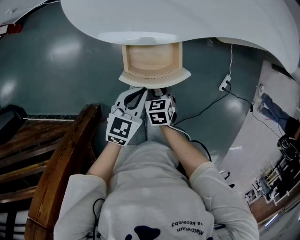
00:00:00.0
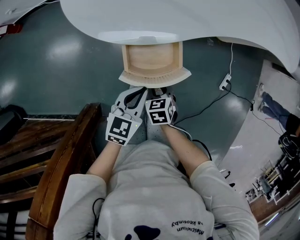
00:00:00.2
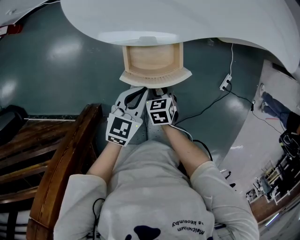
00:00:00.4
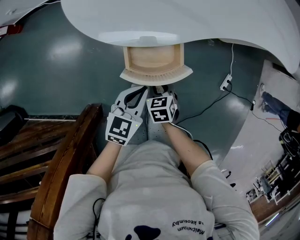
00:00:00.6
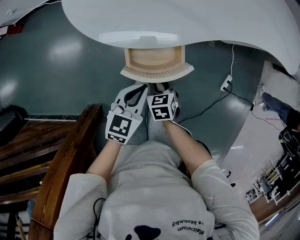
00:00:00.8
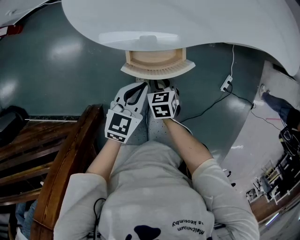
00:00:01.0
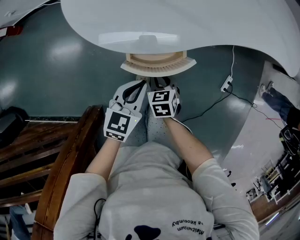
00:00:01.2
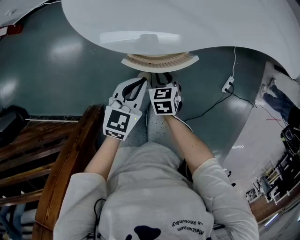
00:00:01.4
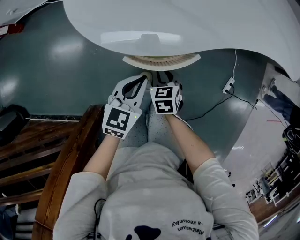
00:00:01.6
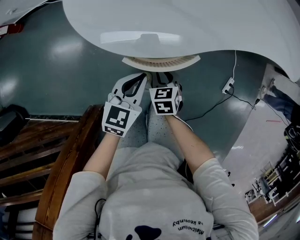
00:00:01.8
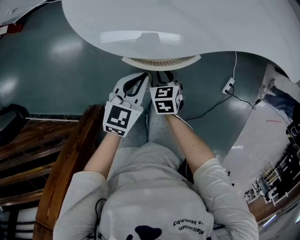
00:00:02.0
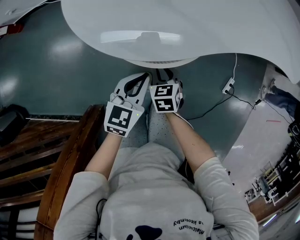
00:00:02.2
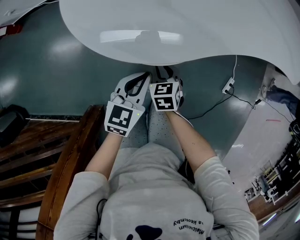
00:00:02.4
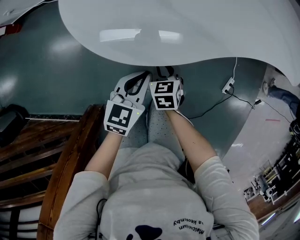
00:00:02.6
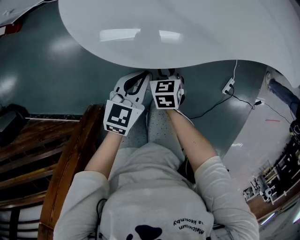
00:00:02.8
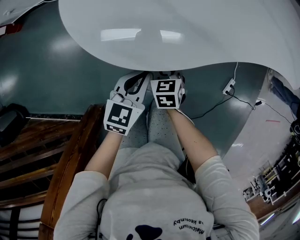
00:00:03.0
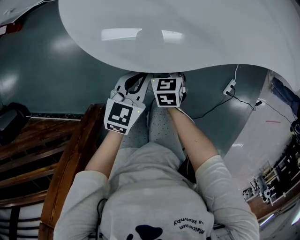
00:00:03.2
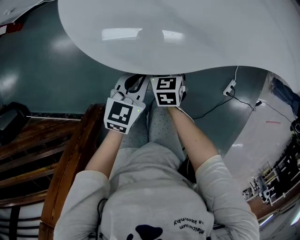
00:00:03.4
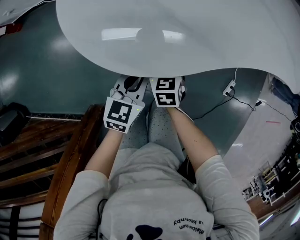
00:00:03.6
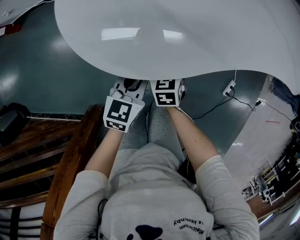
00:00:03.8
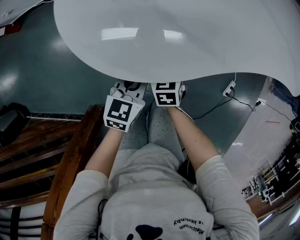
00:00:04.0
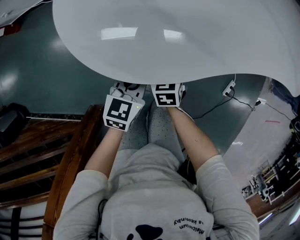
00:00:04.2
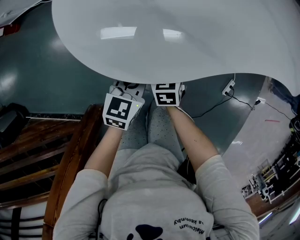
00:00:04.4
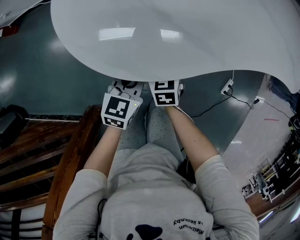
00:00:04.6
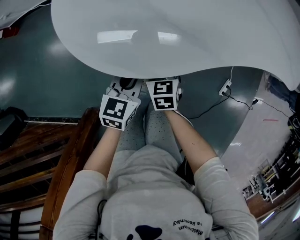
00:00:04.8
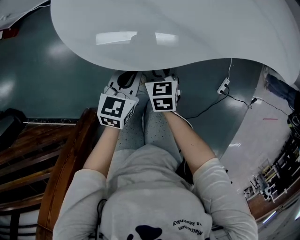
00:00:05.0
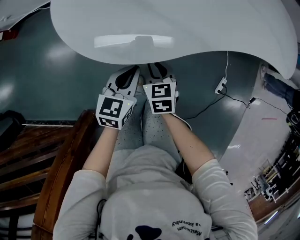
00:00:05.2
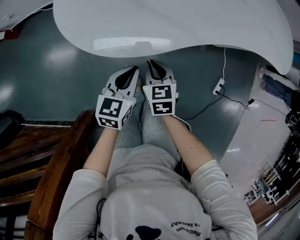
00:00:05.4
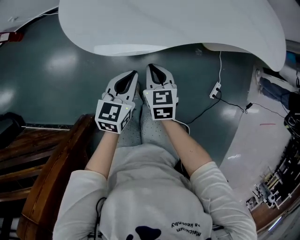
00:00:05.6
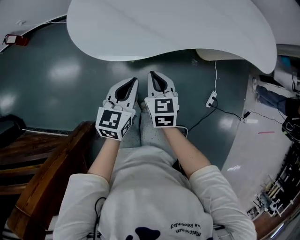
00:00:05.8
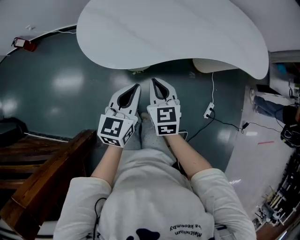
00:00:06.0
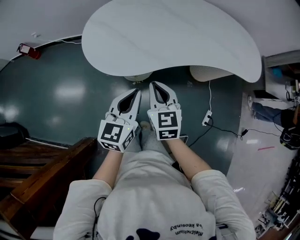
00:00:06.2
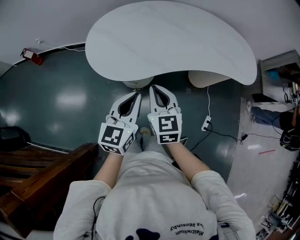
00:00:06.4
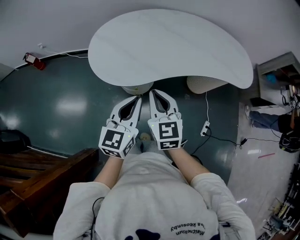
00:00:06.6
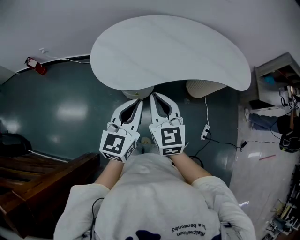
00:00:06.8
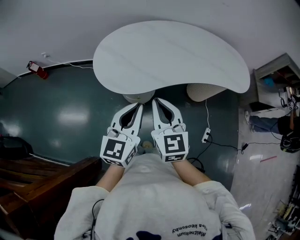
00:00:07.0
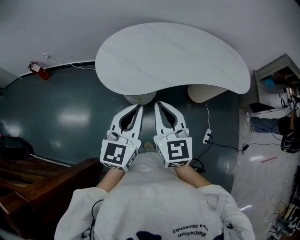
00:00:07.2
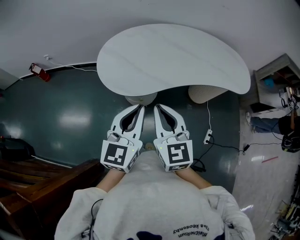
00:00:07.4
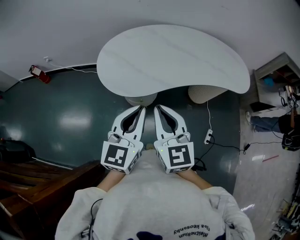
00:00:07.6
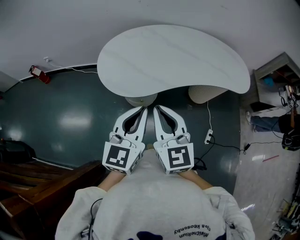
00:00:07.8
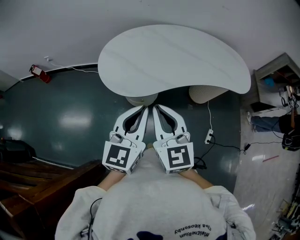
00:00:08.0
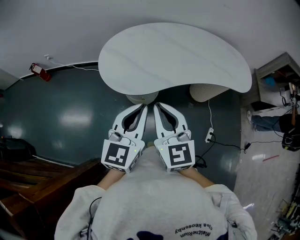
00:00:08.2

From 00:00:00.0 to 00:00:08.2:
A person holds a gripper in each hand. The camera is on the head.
From 00:00:00.0 to 00:00:01.6: Both grippers travel together forward, roughly 10 cm.
From 00:00:01.6 to 00:00:03.2: Both grippers move forward, some 5 cm.
From 00:00:03.2 to 00:00:05.0: There are only small adjustments of the grippers.
From 00:00:05.0 to 00:00:06.6: The grippers both shift upward by about 35 cm. The left gripper rotates approximately 30 degrees. The right gripper points its fingers approximately 30 degrees further upward, and closes its fingers.
From 00:00:06.6 to 00:00:08.2: The right gripper is displaced upward and backward by approximately 10 cm, while the left gripper moves upward, some 10 cm.

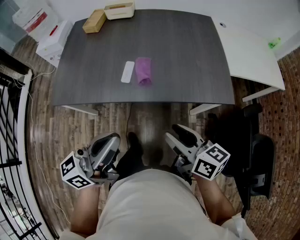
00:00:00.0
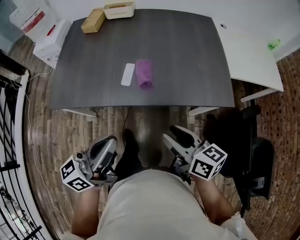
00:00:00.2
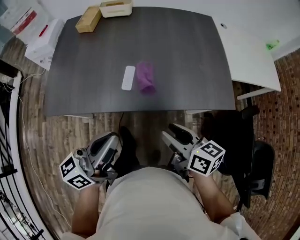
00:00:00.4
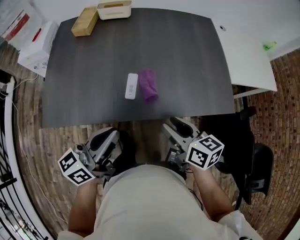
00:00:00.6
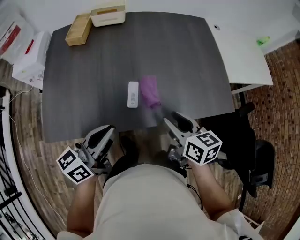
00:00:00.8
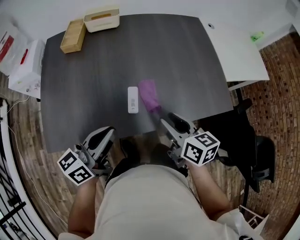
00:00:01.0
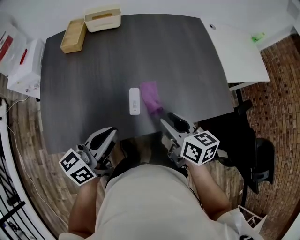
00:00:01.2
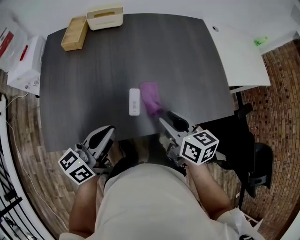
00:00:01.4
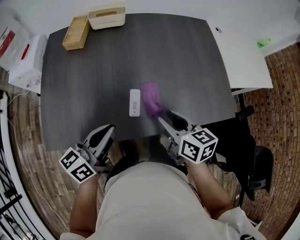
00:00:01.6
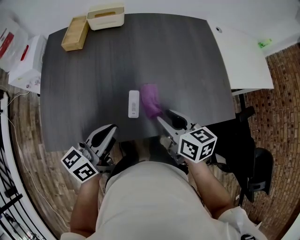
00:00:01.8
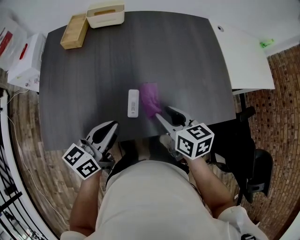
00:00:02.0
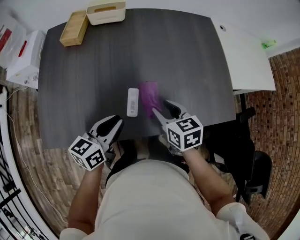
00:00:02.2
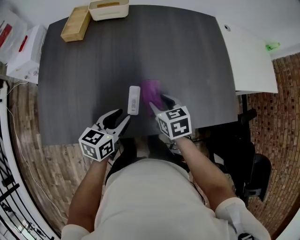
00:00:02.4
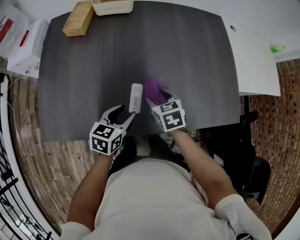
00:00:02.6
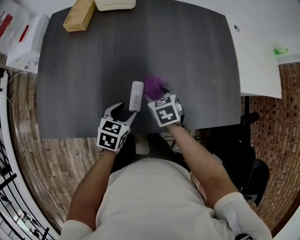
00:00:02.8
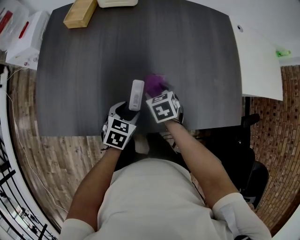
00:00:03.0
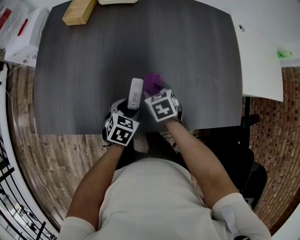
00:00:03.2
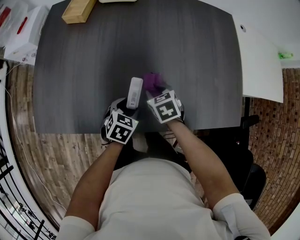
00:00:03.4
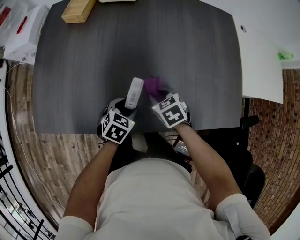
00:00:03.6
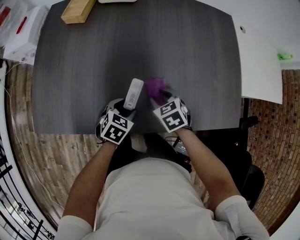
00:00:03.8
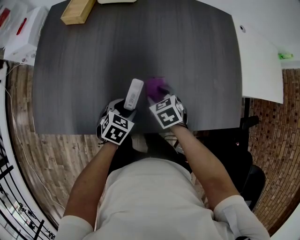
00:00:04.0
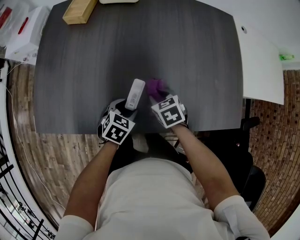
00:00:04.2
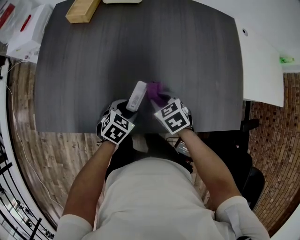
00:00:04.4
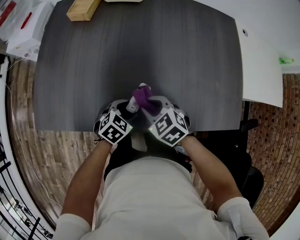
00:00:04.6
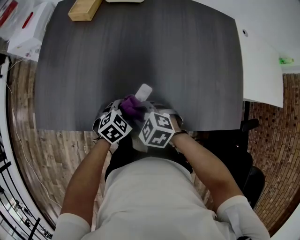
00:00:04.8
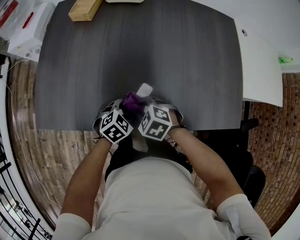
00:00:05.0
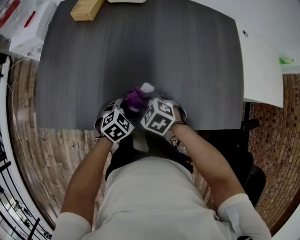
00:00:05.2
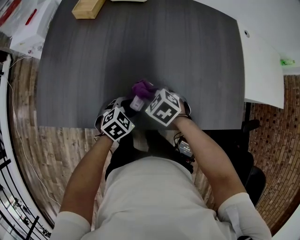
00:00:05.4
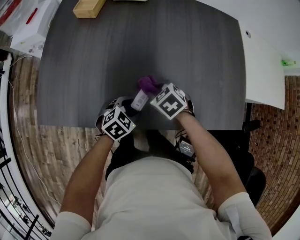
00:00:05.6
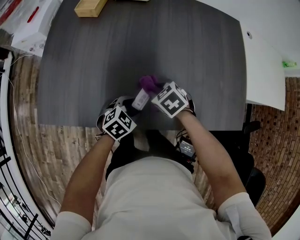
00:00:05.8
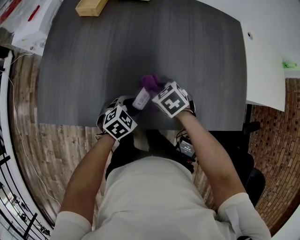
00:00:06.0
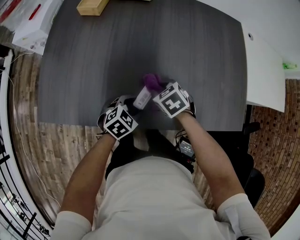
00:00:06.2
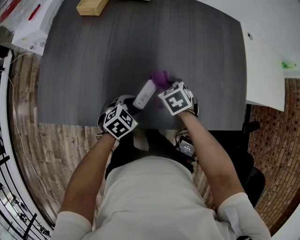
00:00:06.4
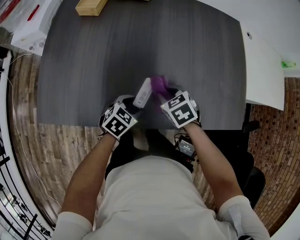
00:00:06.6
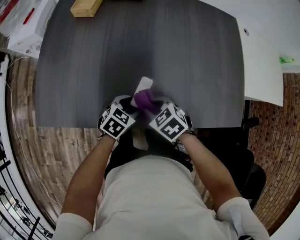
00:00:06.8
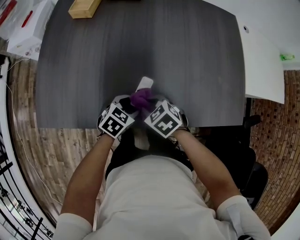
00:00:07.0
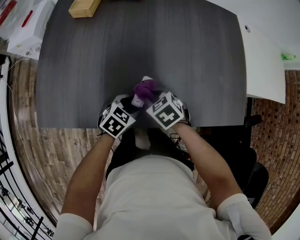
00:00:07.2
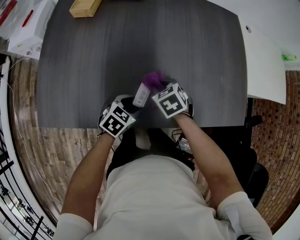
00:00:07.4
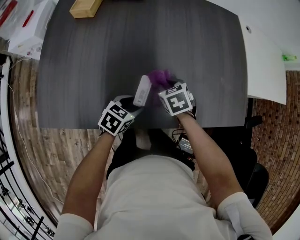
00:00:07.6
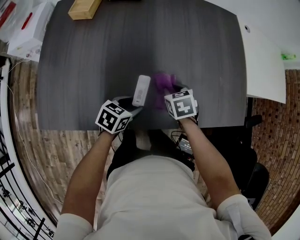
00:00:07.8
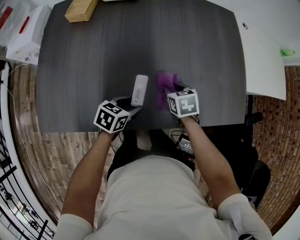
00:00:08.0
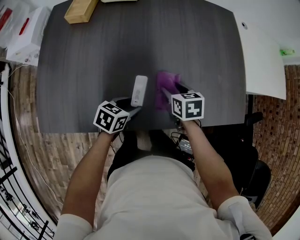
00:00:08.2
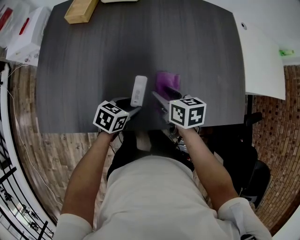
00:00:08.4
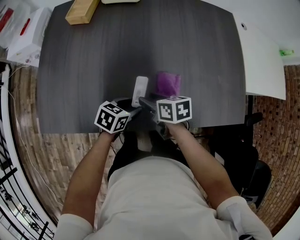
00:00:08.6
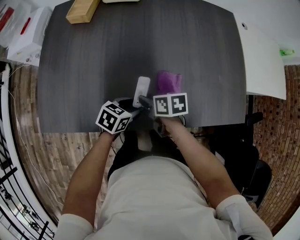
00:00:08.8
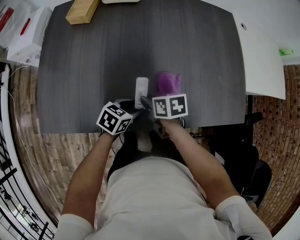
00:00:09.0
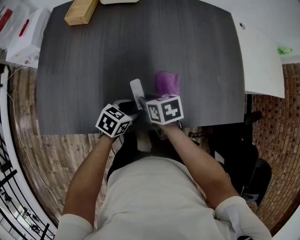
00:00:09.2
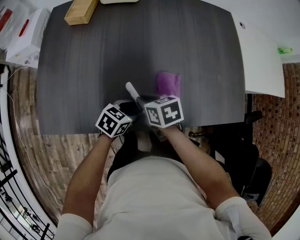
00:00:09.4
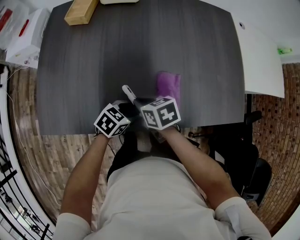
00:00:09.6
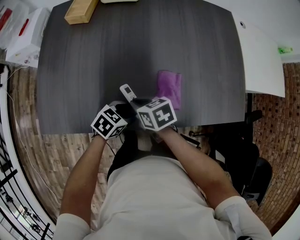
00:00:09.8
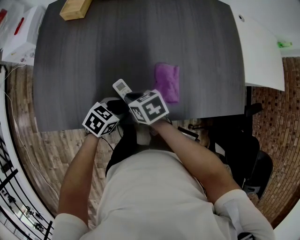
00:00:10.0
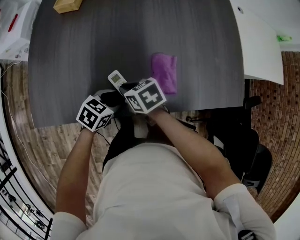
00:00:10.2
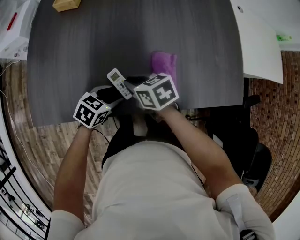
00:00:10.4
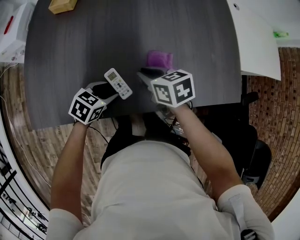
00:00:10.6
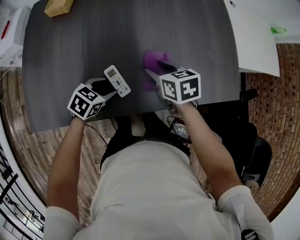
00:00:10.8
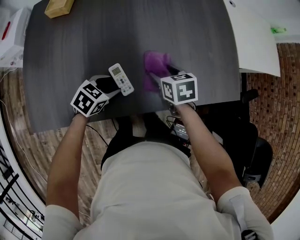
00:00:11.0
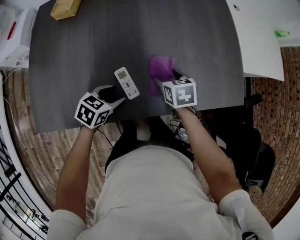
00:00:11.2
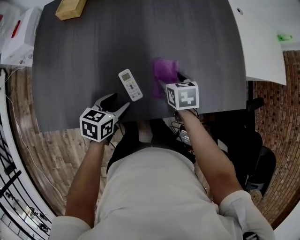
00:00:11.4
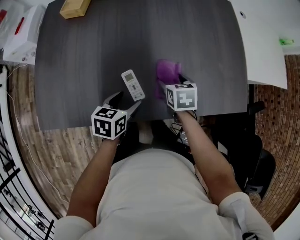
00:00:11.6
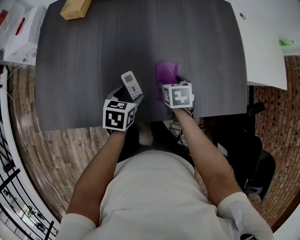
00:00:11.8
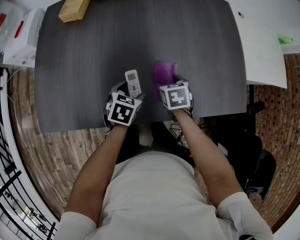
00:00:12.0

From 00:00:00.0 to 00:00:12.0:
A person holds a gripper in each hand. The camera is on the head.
From 00:00:00.0 to 00:00:01.6: The left gripper heads forward, to the left and downward, covering about 25 cm; the right gripper heads forward and to the left, covering approximately 25 cm, and changes its angle by about 20 degrees.
From 00:00:01.6 to 00:00:03.0: The left gripper is displaced downward by approximately 20 cm, points its fingers roughly 50 degrees further downward, and opens; the right gripper is displaced downward and forward by approximately 20 cm, and turns by approximately 40 degrees.
From 00:00:03.0 to 00:00:04.4: The right gripper closes up.
From 00:00:06.0 to 00:00:07.6: The right gripper reaches some 10 cm backward, then returns, and changes its angle by about 20 degrees.
From 00:00:07.6 to 00:00:09.0: The right gripper moves backward, roughly 5 cm, and rotates approximately 40 degrees.
From 00:00:09.0 to 00:00:10.4: The left gripper moves some 5 cm, while the right gripper moves roughly 5 cm.
From 00:00:10.4 to 00:00:12.0: The left gripper changes place by approximately 10 cm. Meanwhile the right gripper ends up roughly 15 cm from where it was, rotates roughly 30 degrees, and opens up.

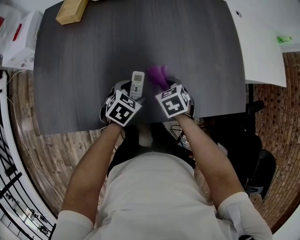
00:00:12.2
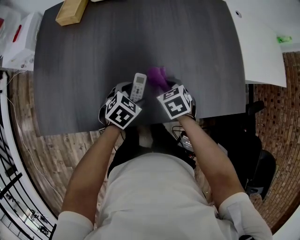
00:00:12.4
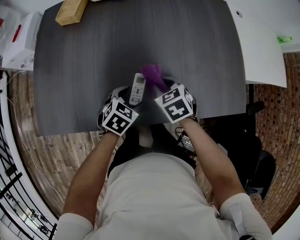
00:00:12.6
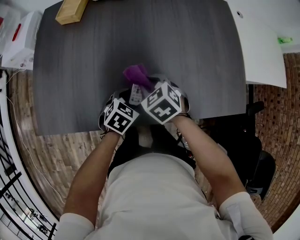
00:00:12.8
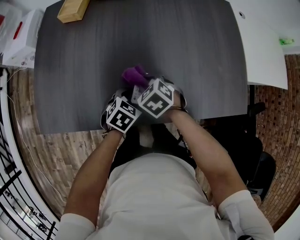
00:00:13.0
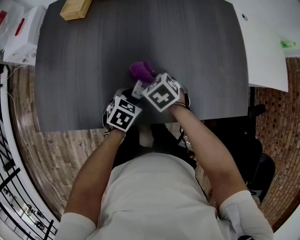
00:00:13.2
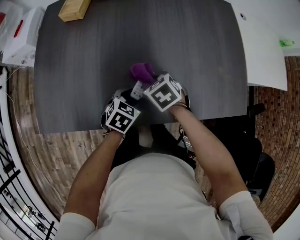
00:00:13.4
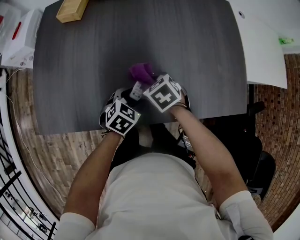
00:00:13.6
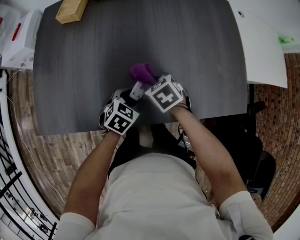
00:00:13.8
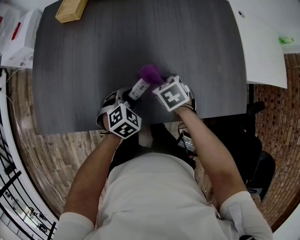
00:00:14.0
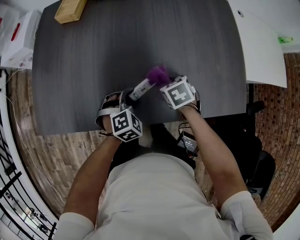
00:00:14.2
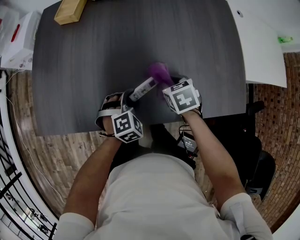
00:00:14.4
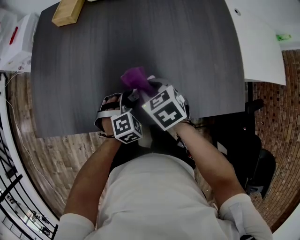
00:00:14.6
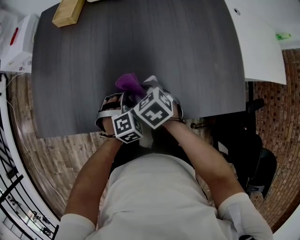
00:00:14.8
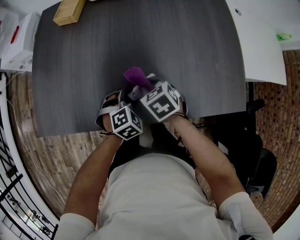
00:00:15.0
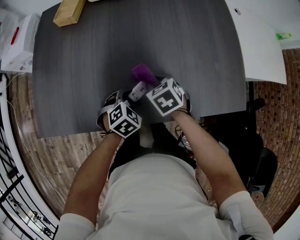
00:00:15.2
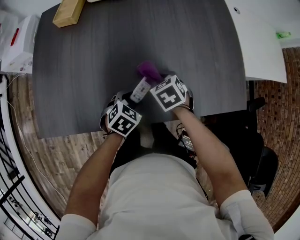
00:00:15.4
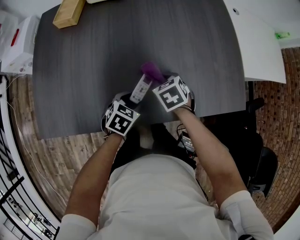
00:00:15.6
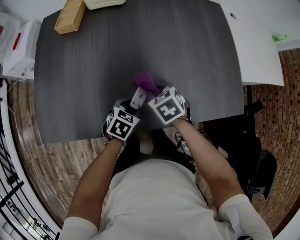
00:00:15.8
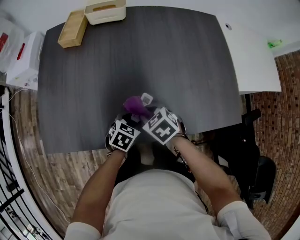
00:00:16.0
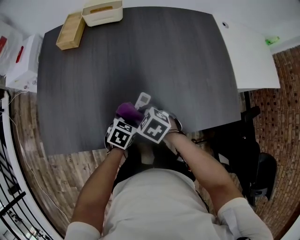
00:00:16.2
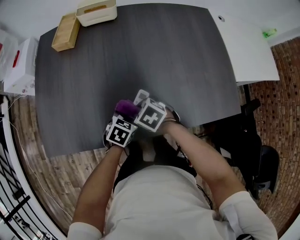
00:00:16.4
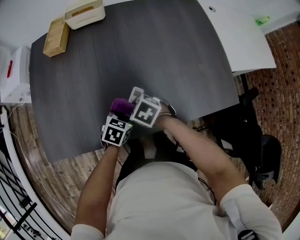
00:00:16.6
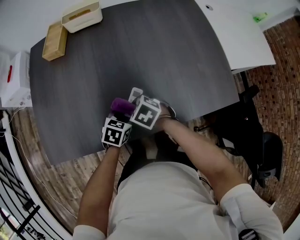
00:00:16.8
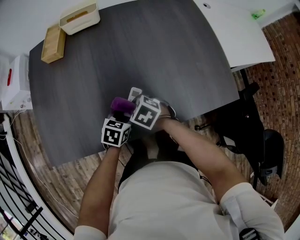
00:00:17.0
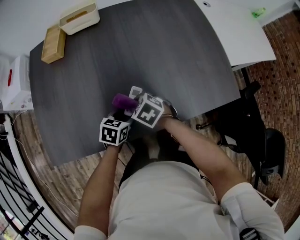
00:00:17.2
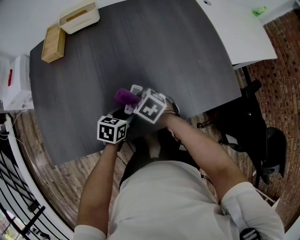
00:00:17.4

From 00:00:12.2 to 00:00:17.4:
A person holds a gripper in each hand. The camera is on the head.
From 00:00:12.2 to 00:00:14.0: The right gripper travels to the left and back again, about 10 cm each way; the left gripper closes its fingers.
From 00:00:14.0 to 00:00:15.6: The left gripper rotates roughly 20 degrees.
